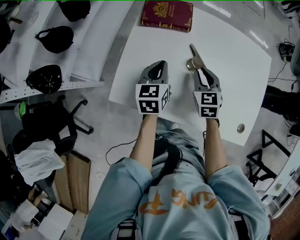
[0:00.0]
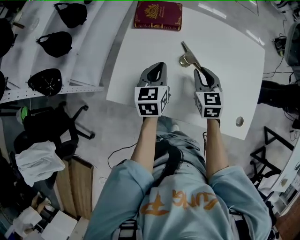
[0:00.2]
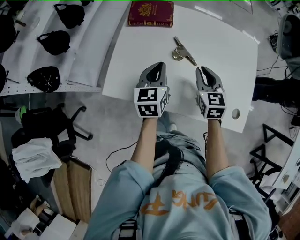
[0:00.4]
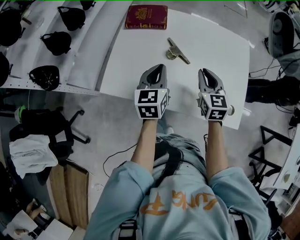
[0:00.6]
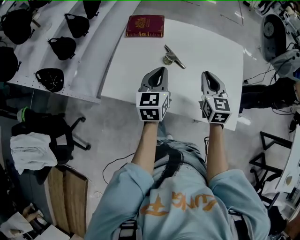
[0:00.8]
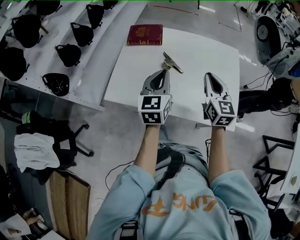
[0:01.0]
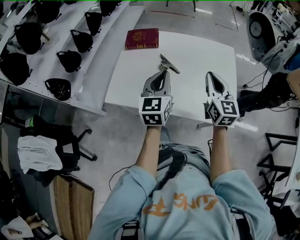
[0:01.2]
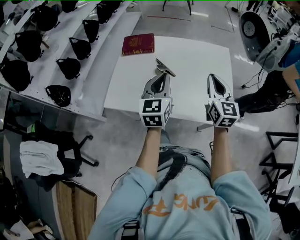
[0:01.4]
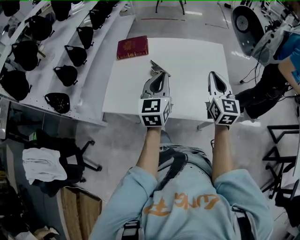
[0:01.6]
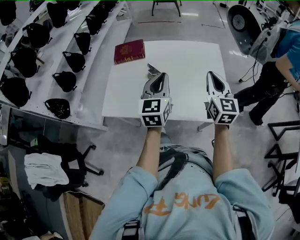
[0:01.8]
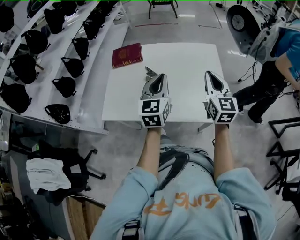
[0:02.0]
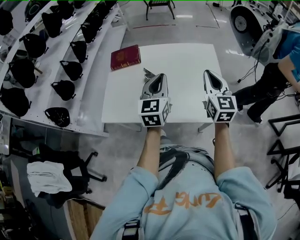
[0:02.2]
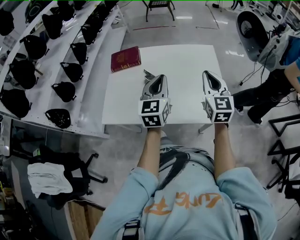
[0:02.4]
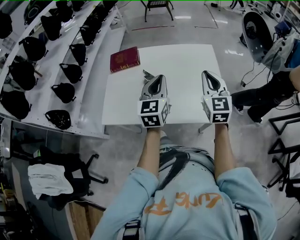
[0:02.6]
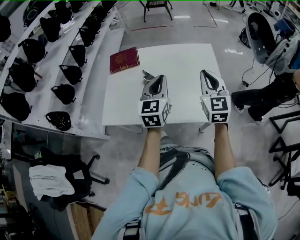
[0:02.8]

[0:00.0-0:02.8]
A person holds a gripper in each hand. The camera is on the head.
0:00.0 to 0:01.4: The left gripper goes about 30 cm upward, to the right and backward, and swivels roughly 20 degrees; the right gripper travels to the right, upward and backward by about 35 cm, and angles its fingers upward, by about 30 degrees.
0:01.4 to 0:02.8: The left gripper is displaced to the right by approximately 5 cm.

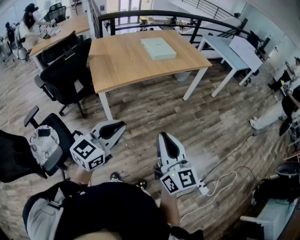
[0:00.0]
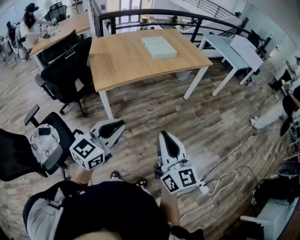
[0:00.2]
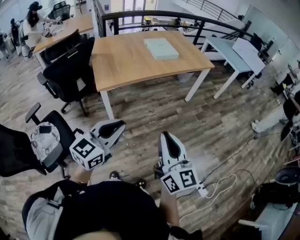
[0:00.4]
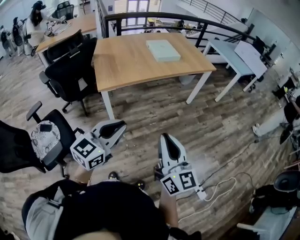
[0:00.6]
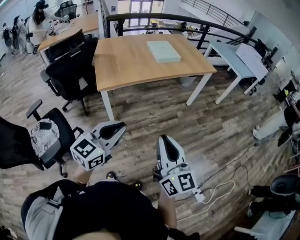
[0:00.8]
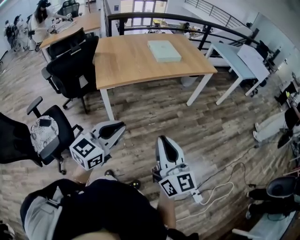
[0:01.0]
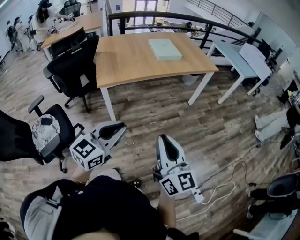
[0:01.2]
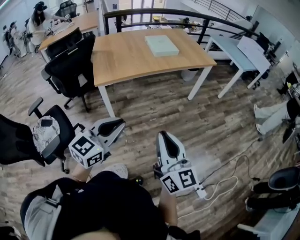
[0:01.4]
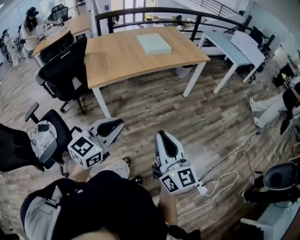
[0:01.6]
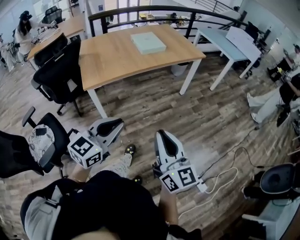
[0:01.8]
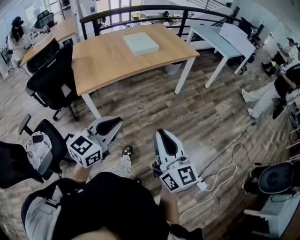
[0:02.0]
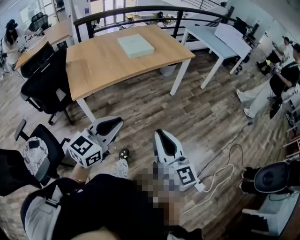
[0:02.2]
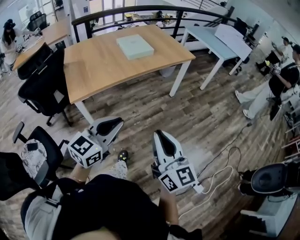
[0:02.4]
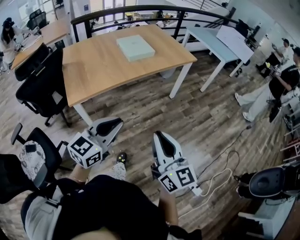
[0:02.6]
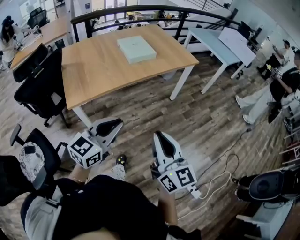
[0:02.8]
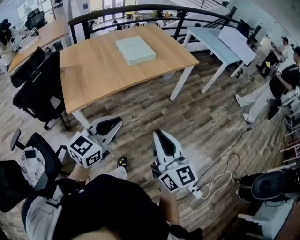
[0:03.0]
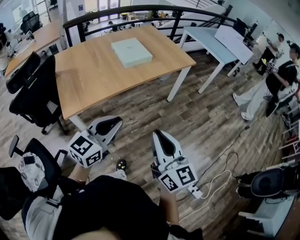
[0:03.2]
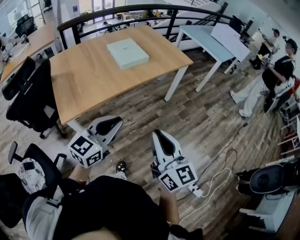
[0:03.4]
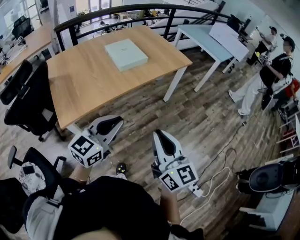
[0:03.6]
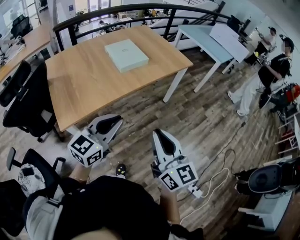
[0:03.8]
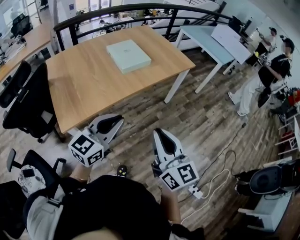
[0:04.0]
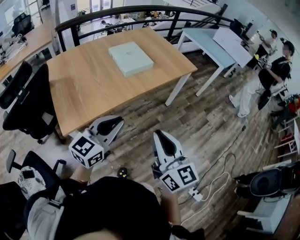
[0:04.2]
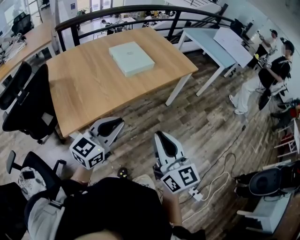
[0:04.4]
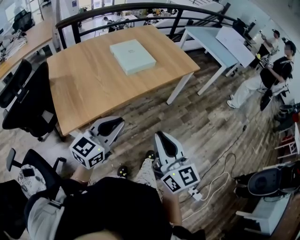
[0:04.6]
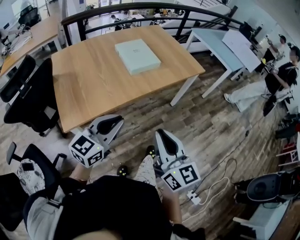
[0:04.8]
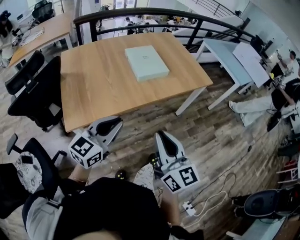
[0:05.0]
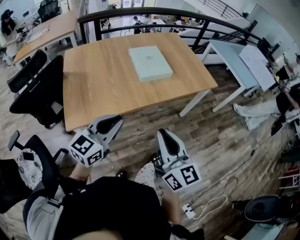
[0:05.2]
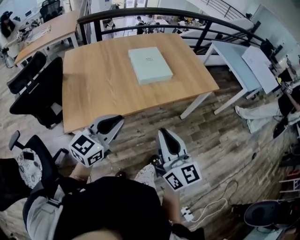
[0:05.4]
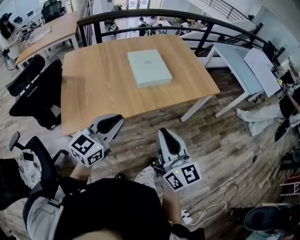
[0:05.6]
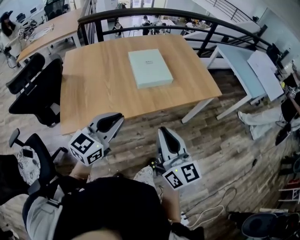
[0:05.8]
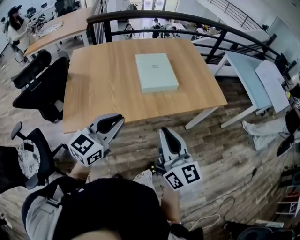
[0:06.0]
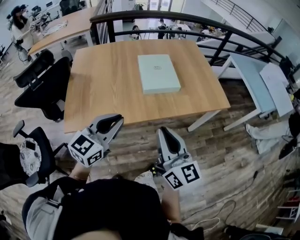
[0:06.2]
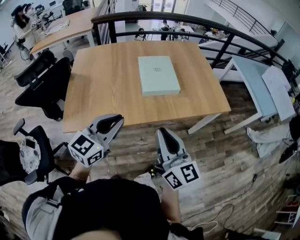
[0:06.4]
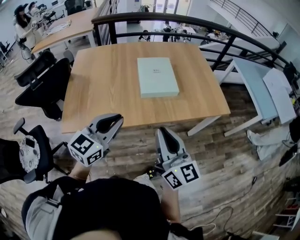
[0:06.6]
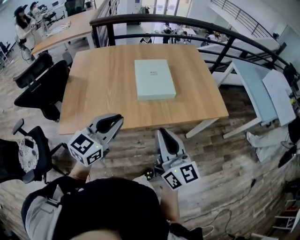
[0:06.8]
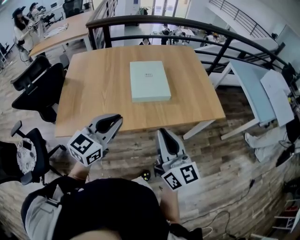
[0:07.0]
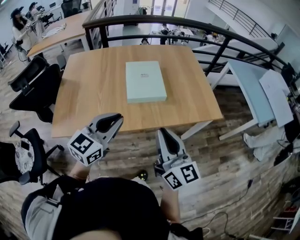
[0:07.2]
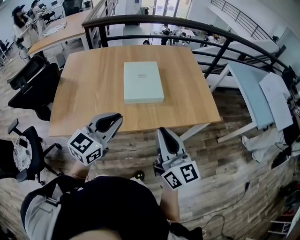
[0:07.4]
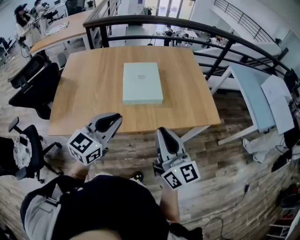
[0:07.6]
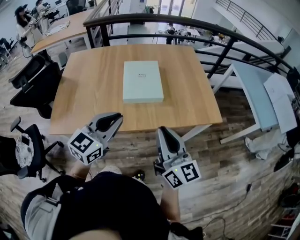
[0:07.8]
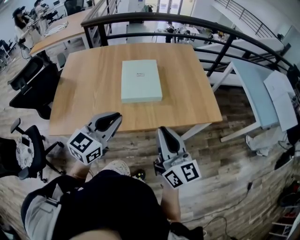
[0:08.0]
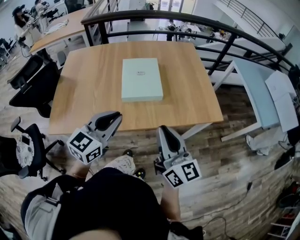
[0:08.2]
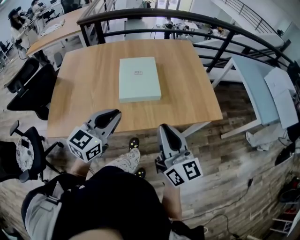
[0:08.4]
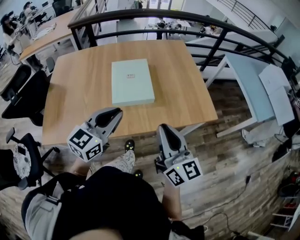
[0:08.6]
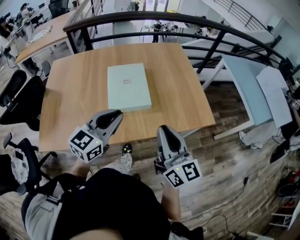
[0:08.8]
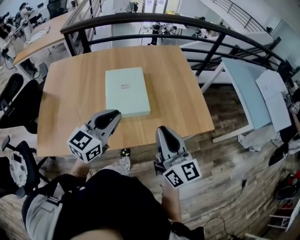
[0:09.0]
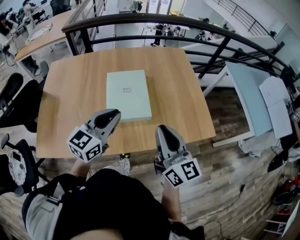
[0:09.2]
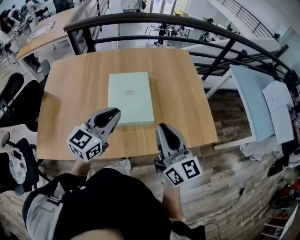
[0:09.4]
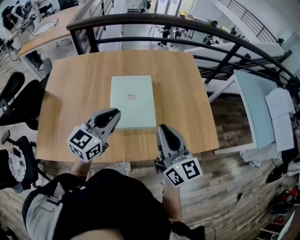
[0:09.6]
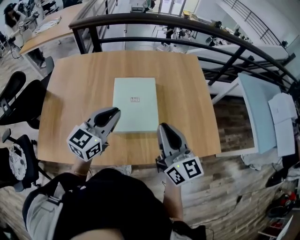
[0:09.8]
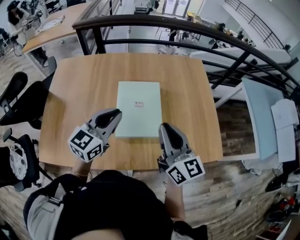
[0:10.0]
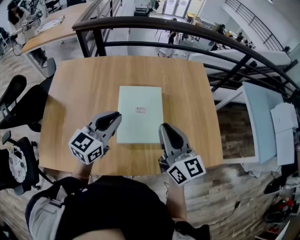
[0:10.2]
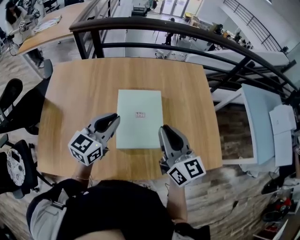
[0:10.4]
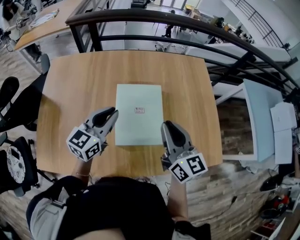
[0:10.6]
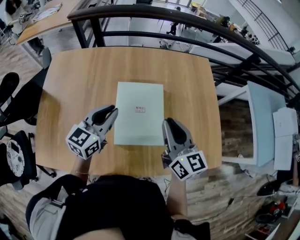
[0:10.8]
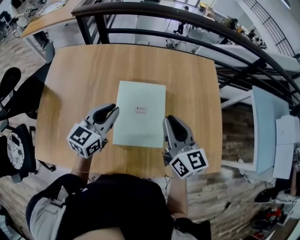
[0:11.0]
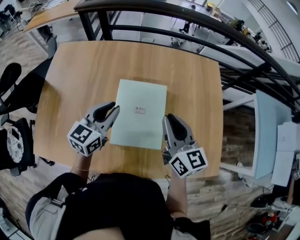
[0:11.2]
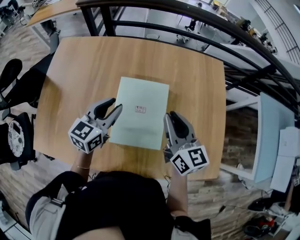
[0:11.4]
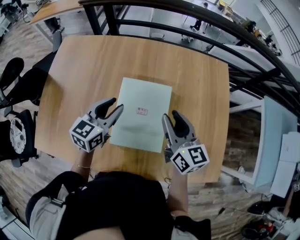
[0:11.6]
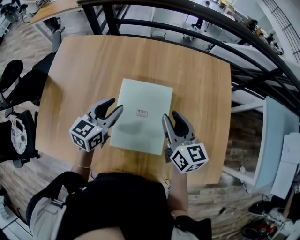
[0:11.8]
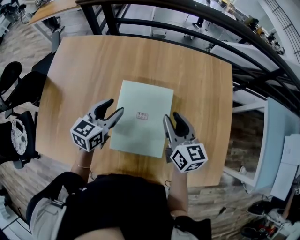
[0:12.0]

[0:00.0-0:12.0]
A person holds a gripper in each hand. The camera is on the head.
0:00.0 to 0:01.6: Both grippers move to the right, some 10 cm.
0:01.6 to 0:03.0: Both grippers travel together forward, some 20 cm.
0:03.0 to 0:04.4: Both grippers move forward and to the left, approximately 15 cm.
0:04.4 to 0:06.0: Both grippers travel together forward, approximately 20 cm. The left gripper swivels roughly 20 degrees.
0:06.0 to 0:07.6: The grippers both shift to the right and forward by approximately 20 cm.
0:07.6 to 0:09.0: Both grippers travel together forward, some 15 cm.
0:09.0 to 0:10.4: The two grippers go roughly 20 cm forward and to the left.
0:10.4 to 0:12.0: The two grippers go approximately 15 cm forward and downward. The right gripper opens up; the left gripper changes its angle by roughly 20 degrees, and opens up.

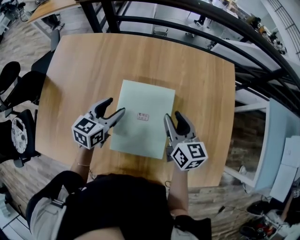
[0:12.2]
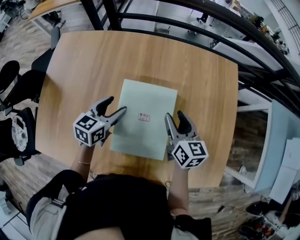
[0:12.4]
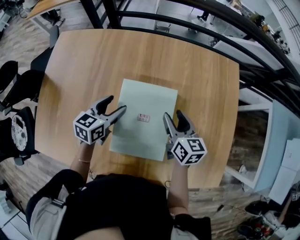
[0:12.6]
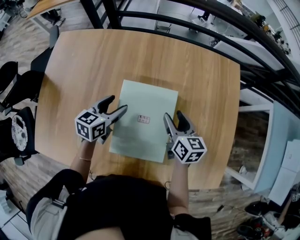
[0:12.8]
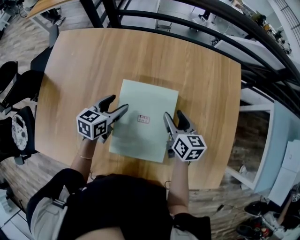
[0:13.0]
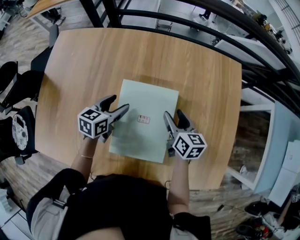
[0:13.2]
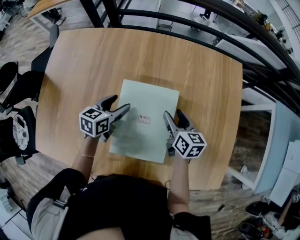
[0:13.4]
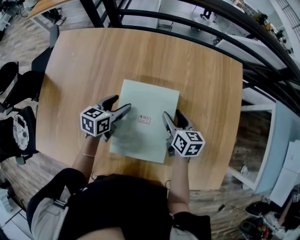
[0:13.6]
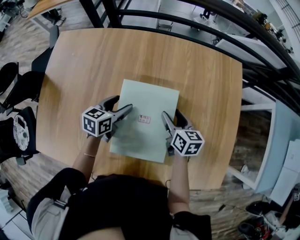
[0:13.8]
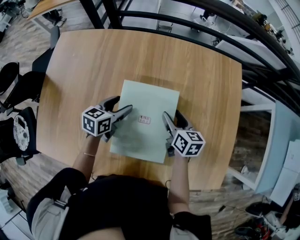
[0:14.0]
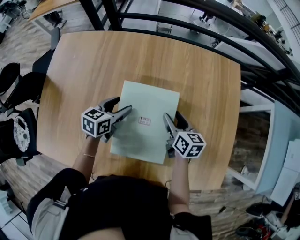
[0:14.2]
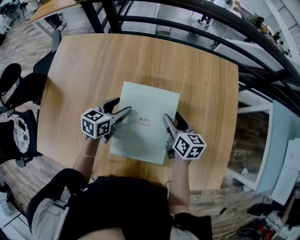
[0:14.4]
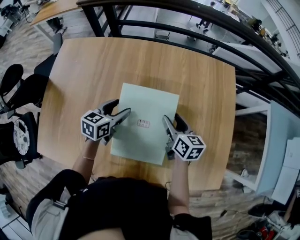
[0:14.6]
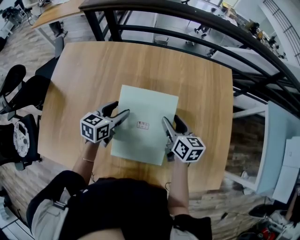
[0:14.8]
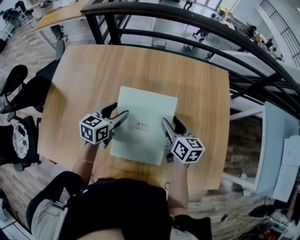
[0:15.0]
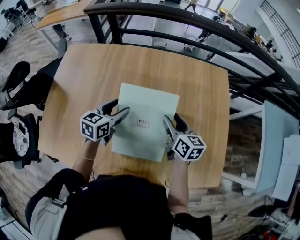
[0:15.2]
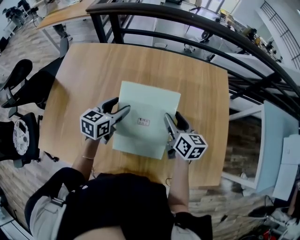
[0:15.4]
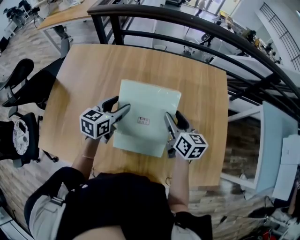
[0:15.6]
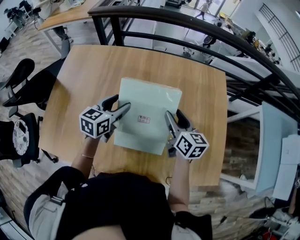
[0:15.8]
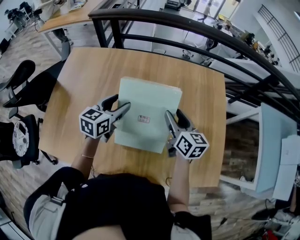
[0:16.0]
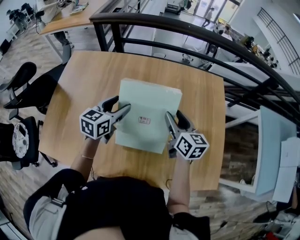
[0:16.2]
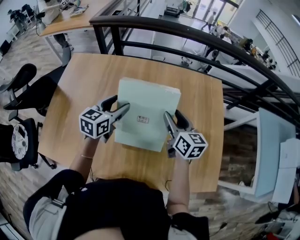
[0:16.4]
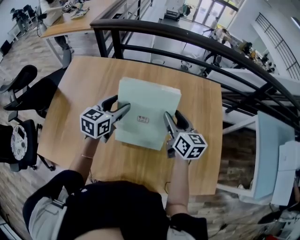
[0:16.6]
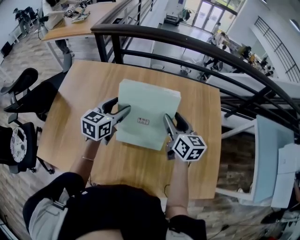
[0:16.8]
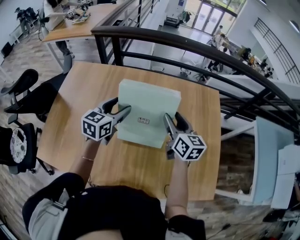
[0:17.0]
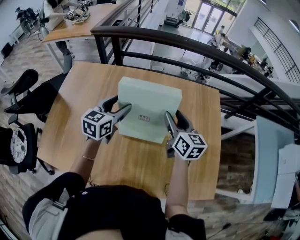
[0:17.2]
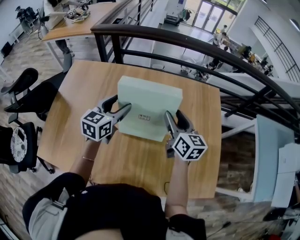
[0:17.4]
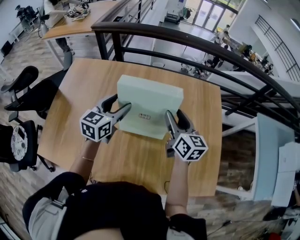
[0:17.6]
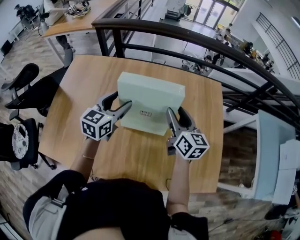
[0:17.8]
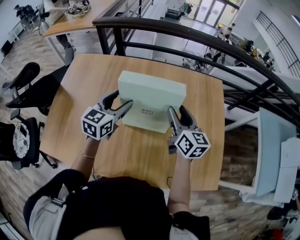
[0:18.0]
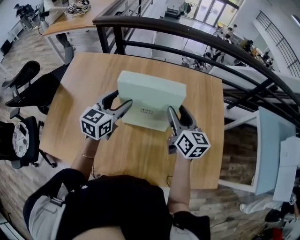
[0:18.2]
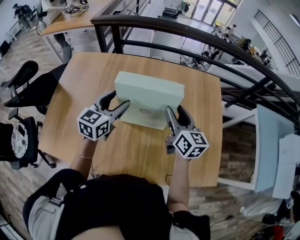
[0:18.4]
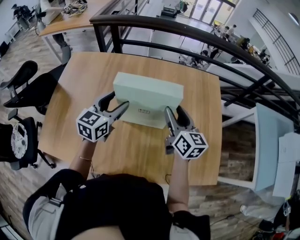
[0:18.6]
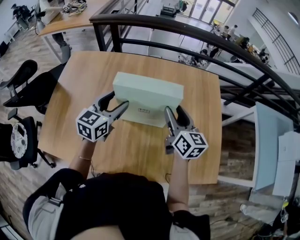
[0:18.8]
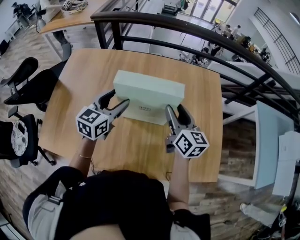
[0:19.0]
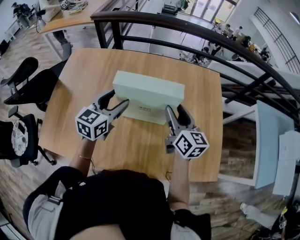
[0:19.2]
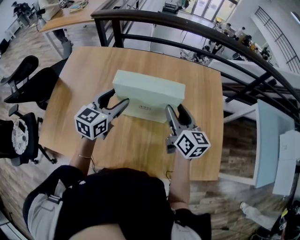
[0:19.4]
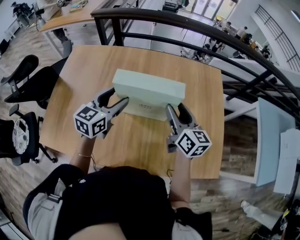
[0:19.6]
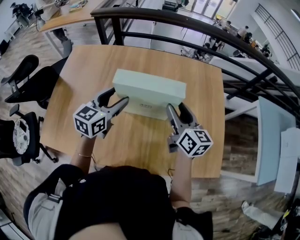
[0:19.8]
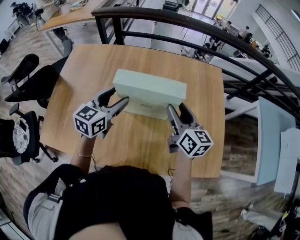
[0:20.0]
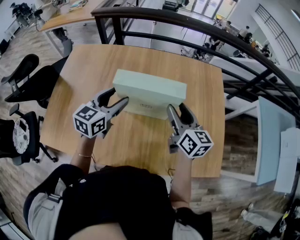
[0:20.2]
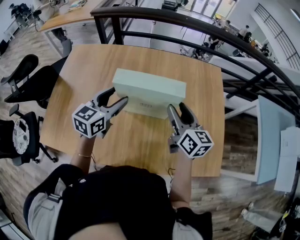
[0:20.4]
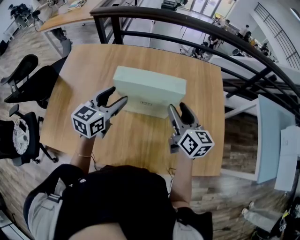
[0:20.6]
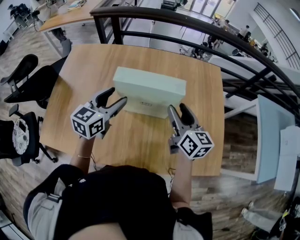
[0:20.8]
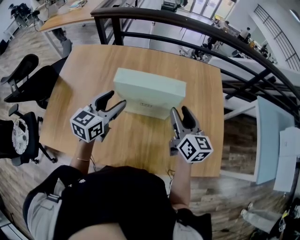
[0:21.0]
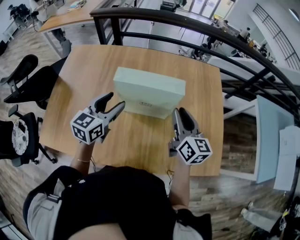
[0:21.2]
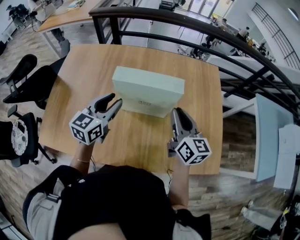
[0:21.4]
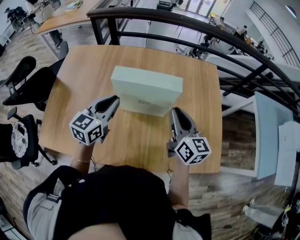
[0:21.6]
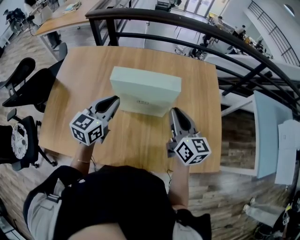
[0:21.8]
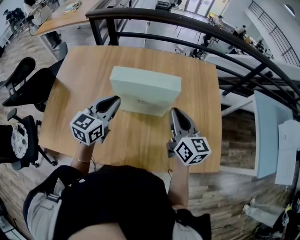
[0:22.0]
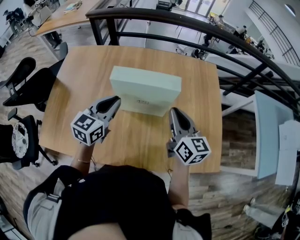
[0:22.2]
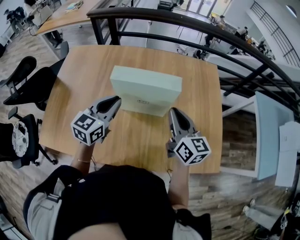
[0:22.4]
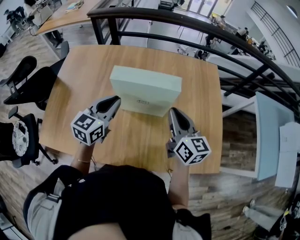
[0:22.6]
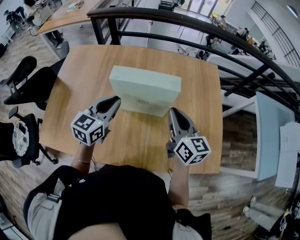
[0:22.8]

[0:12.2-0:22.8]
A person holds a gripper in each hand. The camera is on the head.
0:12.2 to 0:13.8: The grippers both shift downward by roughly 10 cm. The right gripper opens up.
0:13.8 to 0:15.2: The grippers both shift upward by about 10 cm.
0:15.2 to 0:16.8: Both grippers move upward, some 10 cm.
0:16.8 to 0:18.2: The grippers make only small movements.
0:18.2 to 0:19.8: There are only small adjustments of the grippers.
0:19.8 to 0:21.2: The right gripper closes.
0:21.2 to 0:22.8: The left gripper closes its fingers.
